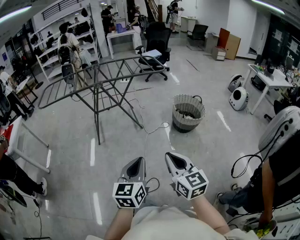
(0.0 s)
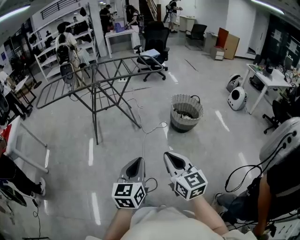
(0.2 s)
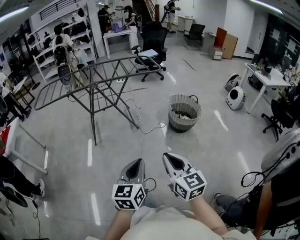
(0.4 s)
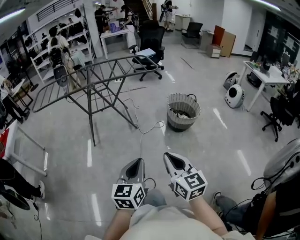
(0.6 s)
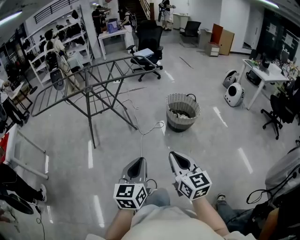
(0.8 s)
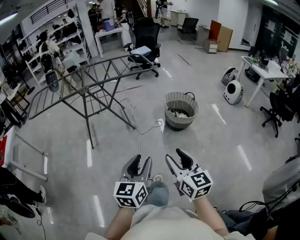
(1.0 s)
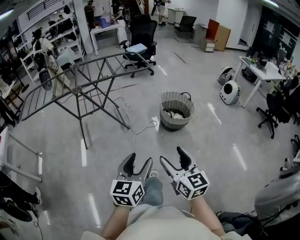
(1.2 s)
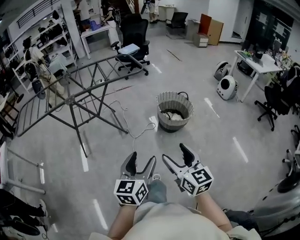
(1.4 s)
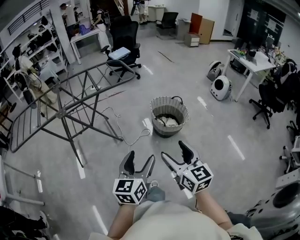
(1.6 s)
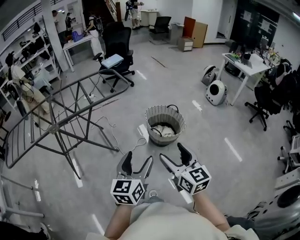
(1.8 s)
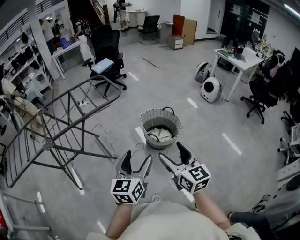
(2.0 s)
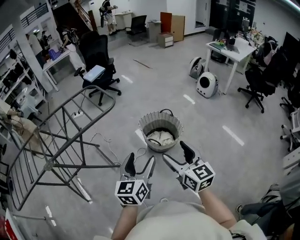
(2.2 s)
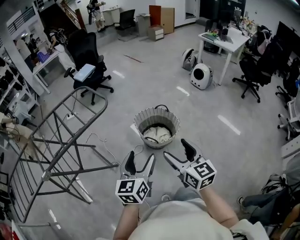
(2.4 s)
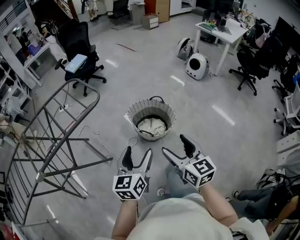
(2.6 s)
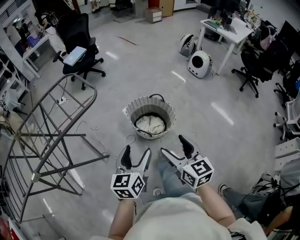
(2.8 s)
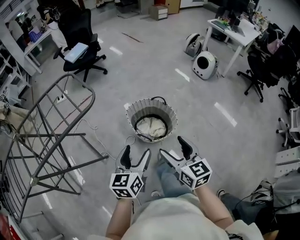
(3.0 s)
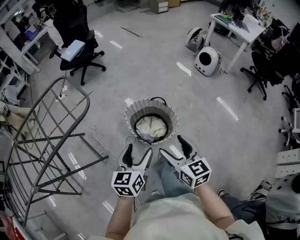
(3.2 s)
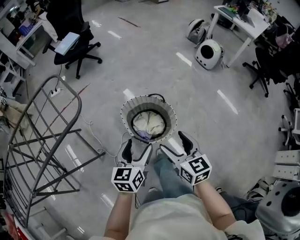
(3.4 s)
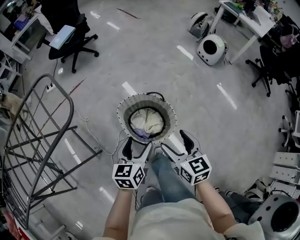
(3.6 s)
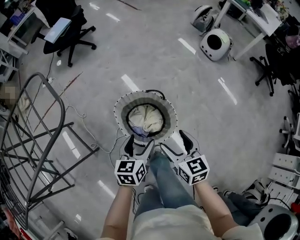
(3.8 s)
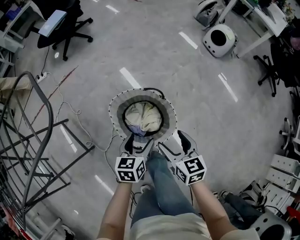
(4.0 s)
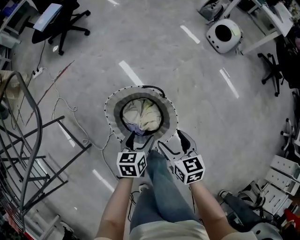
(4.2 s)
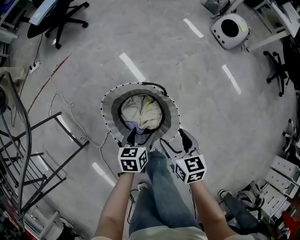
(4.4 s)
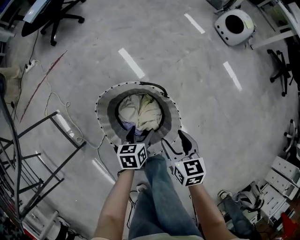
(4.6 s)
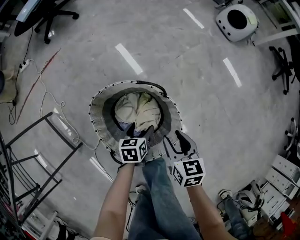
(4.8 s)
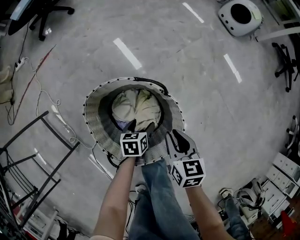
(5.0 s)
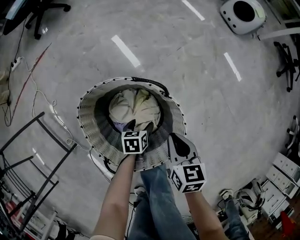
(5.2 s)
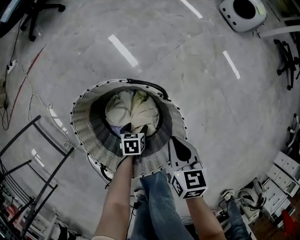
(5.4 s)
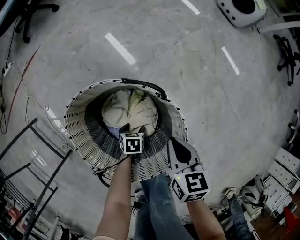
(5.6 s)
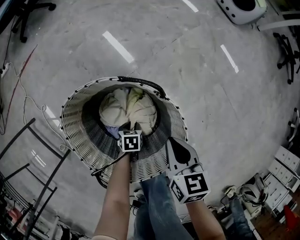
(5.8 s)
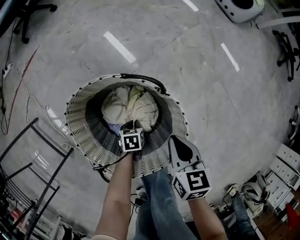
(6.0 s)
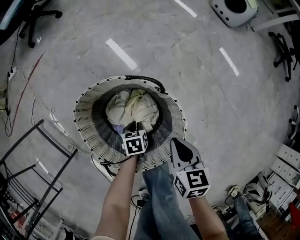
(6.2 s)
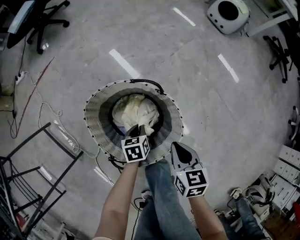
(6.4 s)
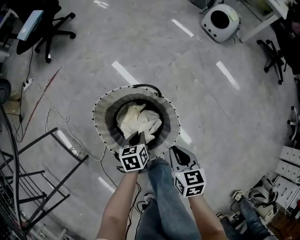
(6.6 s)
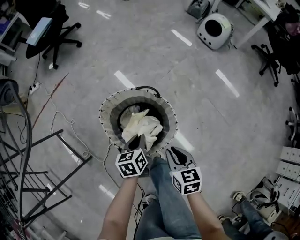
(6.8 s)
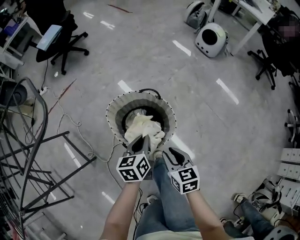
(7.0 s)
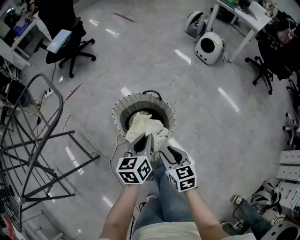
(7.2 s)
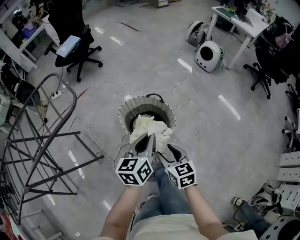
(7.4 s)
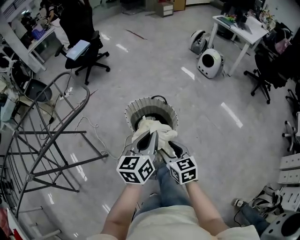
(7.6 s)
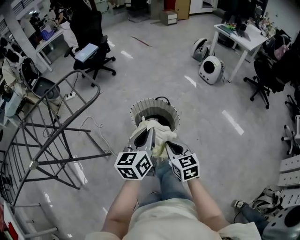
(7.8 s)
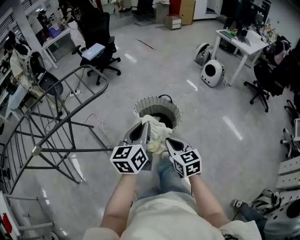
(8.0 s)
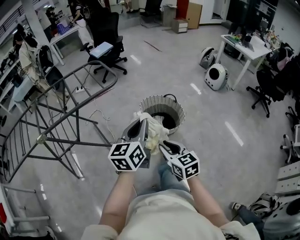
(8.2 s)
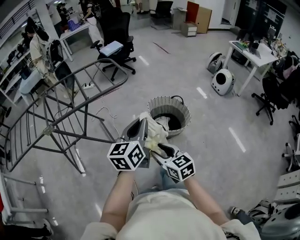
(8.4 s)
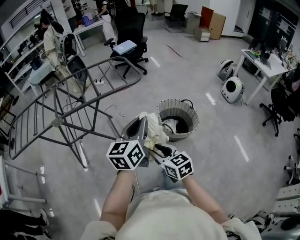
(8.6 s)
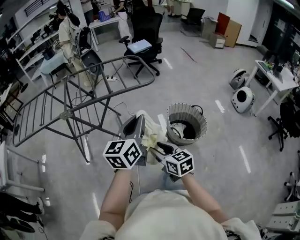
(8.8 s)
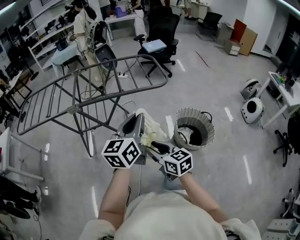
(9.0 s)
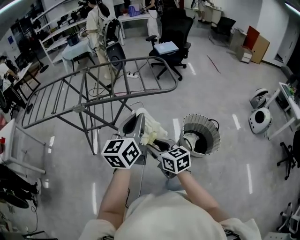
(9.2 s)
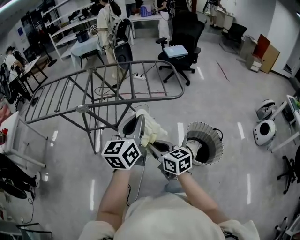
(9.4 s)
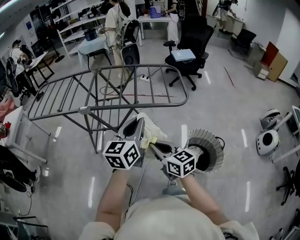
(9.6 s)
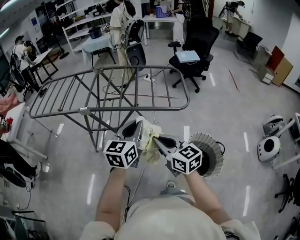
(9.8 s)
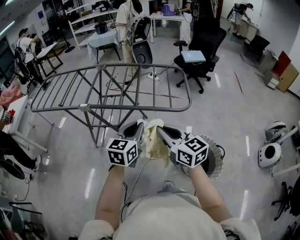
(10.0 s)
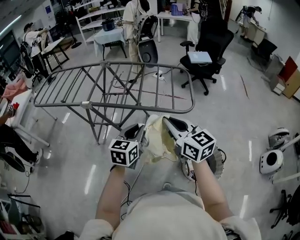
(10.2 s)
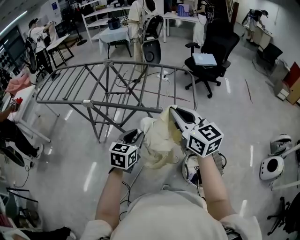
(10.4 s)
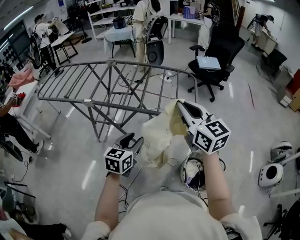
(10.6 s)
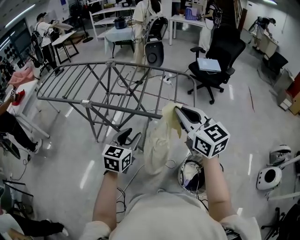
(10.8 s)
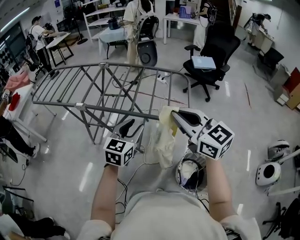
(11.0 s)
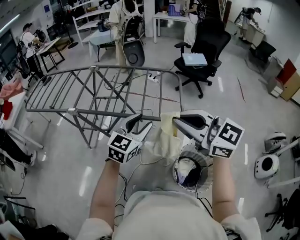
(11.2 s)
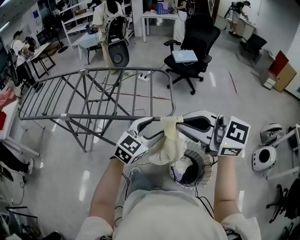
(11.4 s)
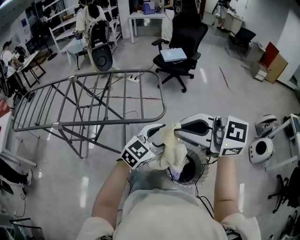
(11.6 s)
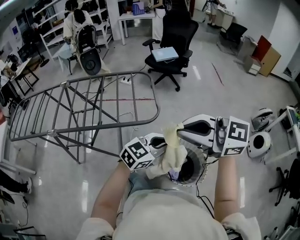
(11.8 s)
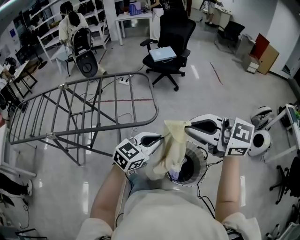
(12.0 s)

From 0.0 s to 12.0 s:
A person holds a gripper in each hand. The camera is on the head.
From 0.0 s to 1.6 s: Both grippers travel together forward and to the right, roughly 25 cm. The left gripper opens; the right gripper opens its fingers.
From 1.6 s to 3.0 s: Both grippers move forward, roughly 35 cm.
From 3.0 s to 4.4 s: Both grippers move downward and forward, roughly 40 cm. The left gripper changes its angle by approximately 30 degrees, while the right gripper turns by approximately 20 degrees.
From 4.4 s to 6.0 s: The left gripper shifts roughly 35 cm downward, rotates roughly 30 degrees, and closes. Meanwhile the right gripper heads downward, covering roughly 15 cm, and closes its fingers.
From 6.0 s to 7.6 s: The right gripper heads upward and backward, covering approximately 40 cm, turns by about 20 degrees, and opens up. The left gripper goes roughly 70 cm upward, and angles its fingers upward, by roughly 60 degrees.
From 7.6 s to 9.0 s: The right gripper moves some 35 cm, turns by approximately 50 degrees, and closes and opens again; the left gripper changes place by roughly 40 cm, and swivels roughly 40 degrees.
From 9.0 s to 10.4 s: The left gripper is displaced forward and downward by some 20 cm, and swivels roughly 30 degrees; the right gripper shifts about 30 cm forward, upward and to the right, swivels some 30 degrees, and closes its fingers.
From 10.4 s to 12.0 s: The left gripper moves about 25 cm, rotates about 50 degrees, and opens, then closes once more. Meanwhile the right gripper moves roughly 20 cm.

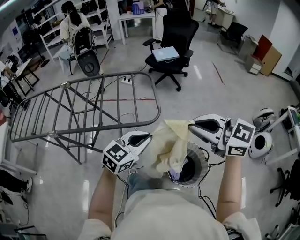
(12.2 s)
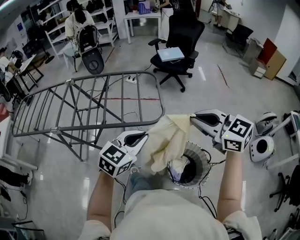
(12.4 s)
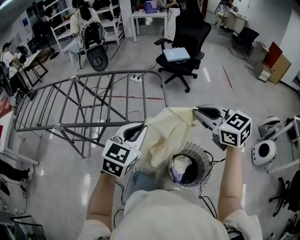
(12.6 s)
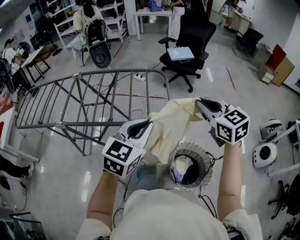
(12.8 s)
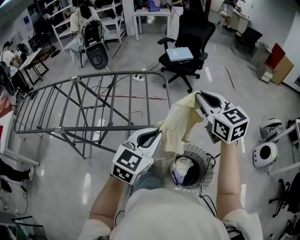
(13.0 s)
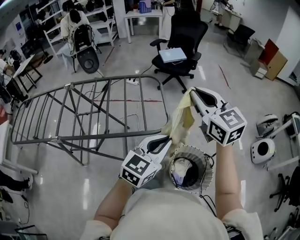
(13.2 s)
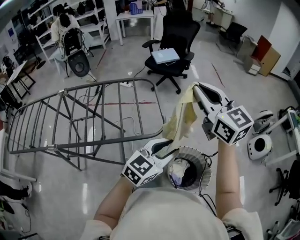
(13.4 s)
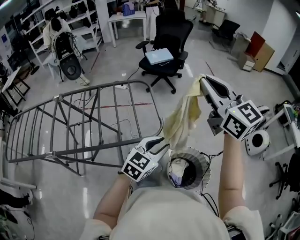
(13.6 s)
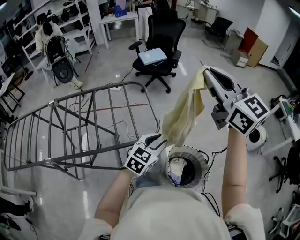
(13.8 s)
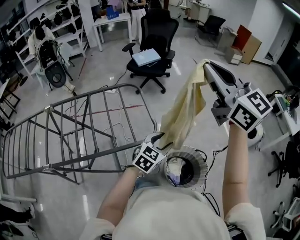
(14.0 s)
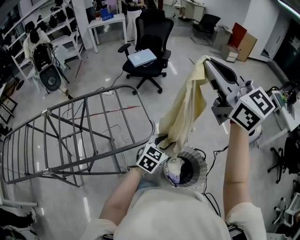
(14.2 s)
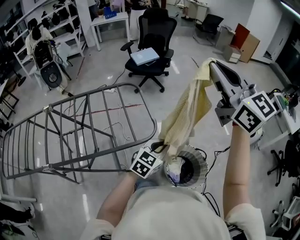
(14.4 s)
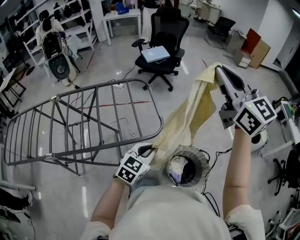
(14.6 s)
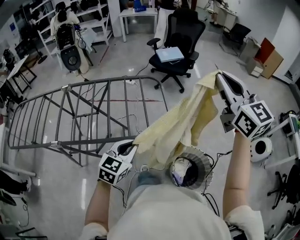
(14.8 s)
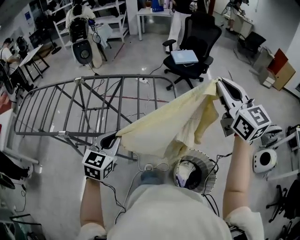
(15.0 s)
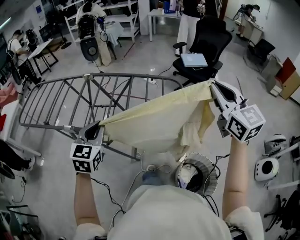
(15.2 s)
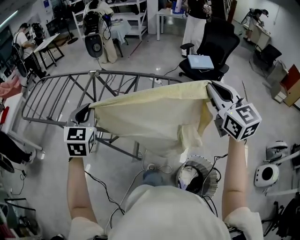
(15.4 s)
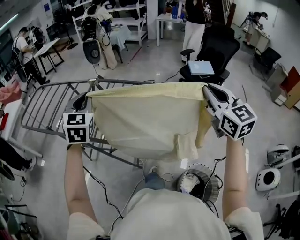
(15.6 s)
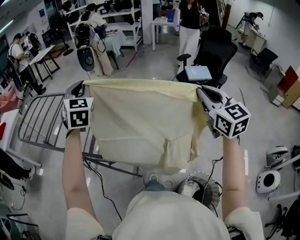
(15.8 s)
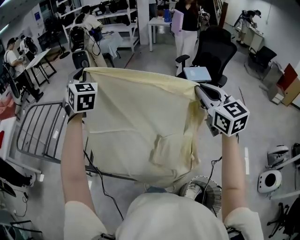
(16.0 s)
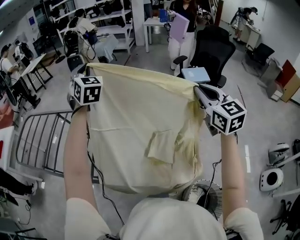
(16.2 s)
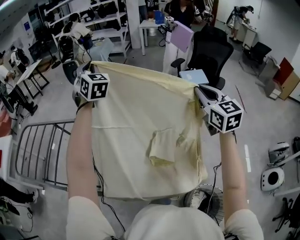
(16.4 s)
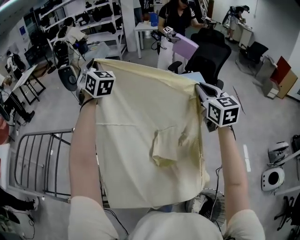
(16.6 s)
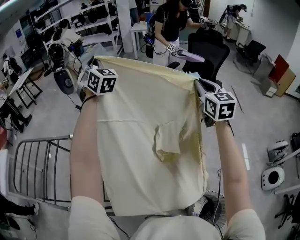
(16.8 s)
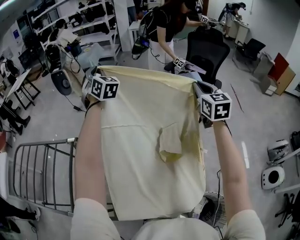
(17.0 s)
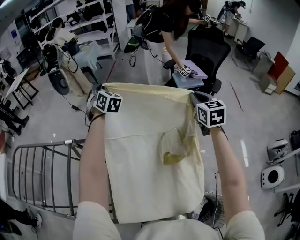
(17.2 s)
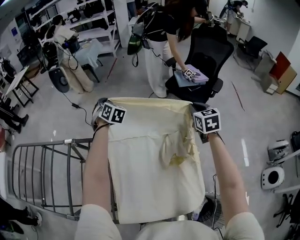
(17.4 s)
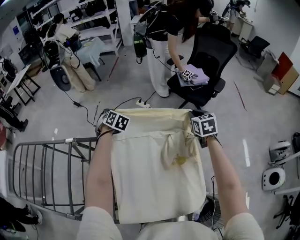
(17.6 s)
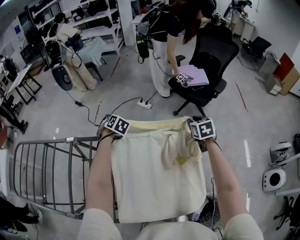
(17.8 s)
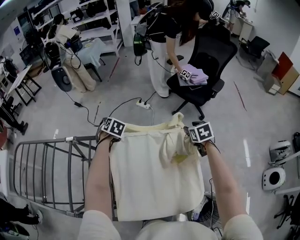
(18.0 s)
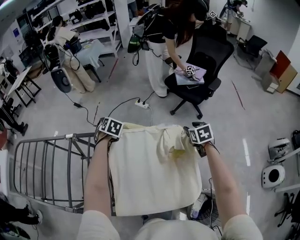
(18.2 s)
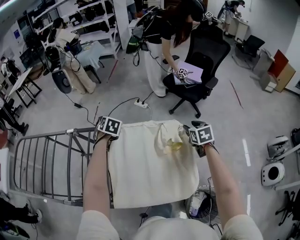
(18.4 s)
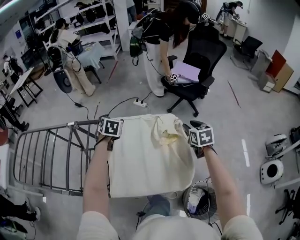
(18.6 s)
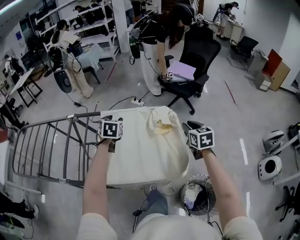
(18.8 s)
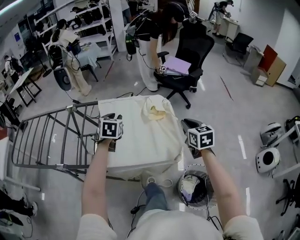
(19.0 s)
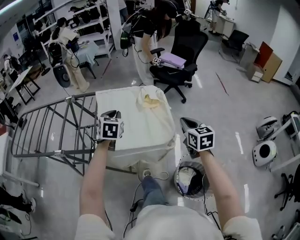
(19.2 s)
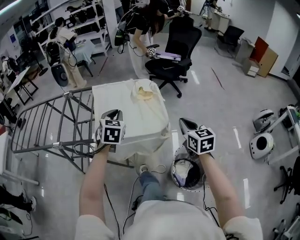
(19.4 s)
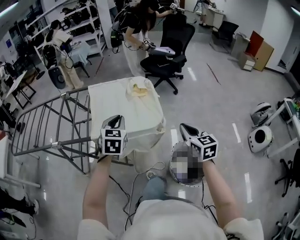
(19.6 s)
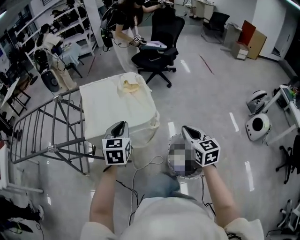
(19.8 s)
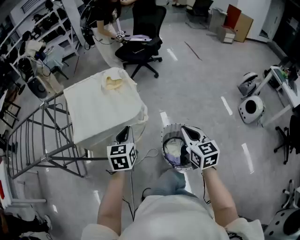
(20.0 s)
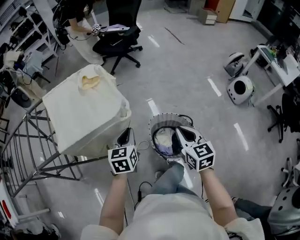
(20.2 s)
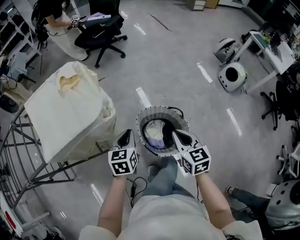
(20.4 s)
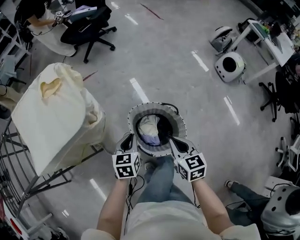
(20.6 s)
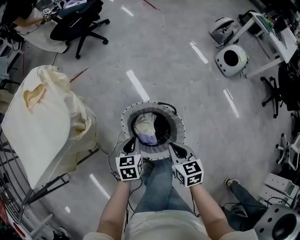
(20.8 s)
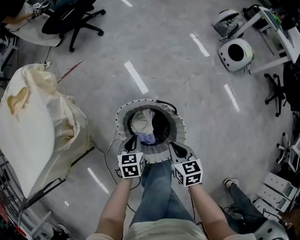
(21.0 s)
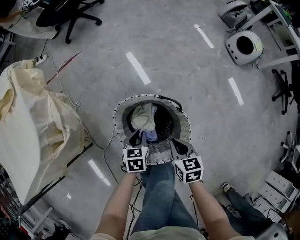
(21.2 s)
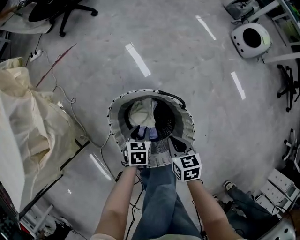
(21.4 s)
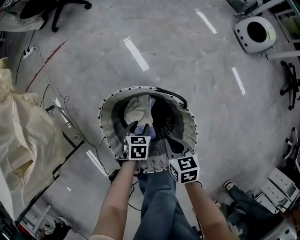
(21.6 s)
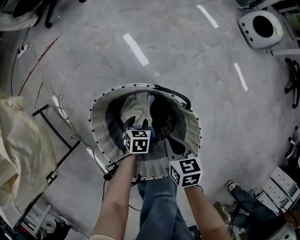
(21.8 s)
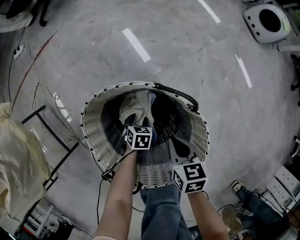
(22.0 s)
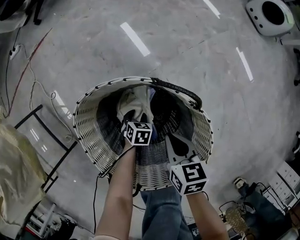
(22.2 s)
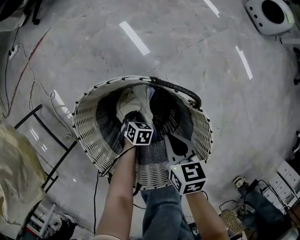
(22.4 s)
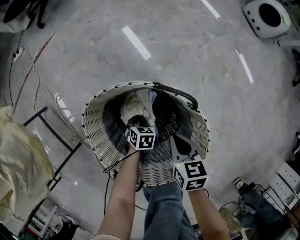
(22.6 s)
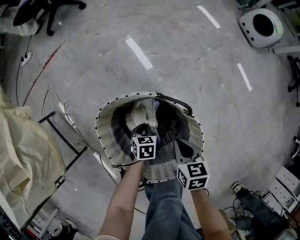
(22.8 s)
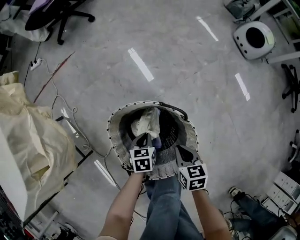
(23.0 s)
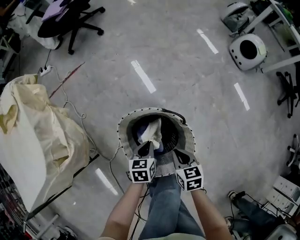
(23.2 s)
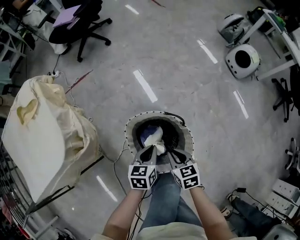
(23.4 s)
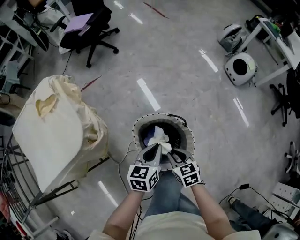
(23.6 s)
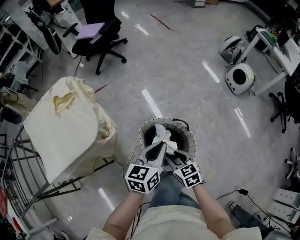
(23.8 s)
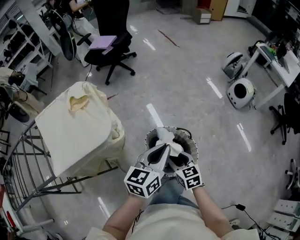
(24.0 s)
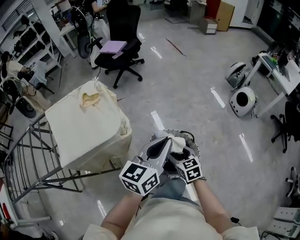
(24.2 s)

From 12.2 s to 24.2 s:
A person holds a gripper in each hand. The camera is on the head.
From 12.2 s to 13.8 s: The left gripper shifts approximately 10 cm forward, and goes upward and returns, about 10 cm each way. The right gripper heads forward and upward, covering some 25 cm, and turns by about 40 degrees.
From 13.8 s to 15.2 s: The left gripper ends up approximately 35 cm from where it was, and changes its angle by about 50 degrees, while the right gripper ends up roughly 10 cm from where it was.
From 15.2 s to 16.6 s: The left gripper travels forward by roughly 60 cm, and rotates approximately 40 degrees, while the right gripper moves forward, about 35 cm.
From 16.6 s to 18.2 s: The two grippers go about 35 cm downward. The left gripper tips its fingers downward by roughly 60 degrees, and opens up. Meanwhile the right gripper points its fingers about 40 degrees further downward, and opens up.
From 18.2 s to 19.8 s: Both grippers are carried backward, some 60 cm. The left gripper tips its fingers upward by about 30 degrees, and closes. The right gripper turns by some 30 degrees, and closes up.
From 19.8 s to 21.2 s: The two grippers go roughly 40 cm downward. The left gripper swivels approximately 40 degrees. The right gripper rotates about 40 degrees.
From 21.2 s to 22.6 s: The right gripper heads downward, covering roughly 20 cm; the left gripper heads downward, covering roughly 30 cm, and changes its angle by approximately 30 degrees.
From 22.6 s to 24.2 s: The right gripper heads upward, covering about 40 cm, turns by some 40 degrees, and opens its fingers. Meanwhile the left gripper travels upward by approximately 80 cm, and tips its fingers upward by roughly 70 degrees.
